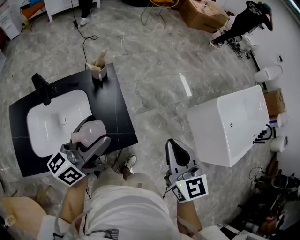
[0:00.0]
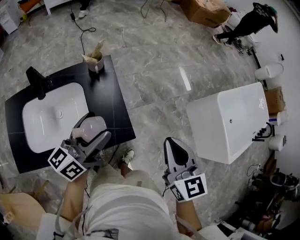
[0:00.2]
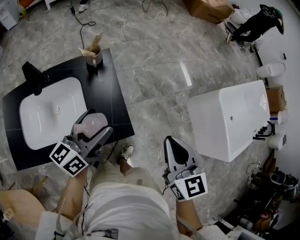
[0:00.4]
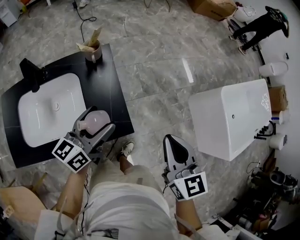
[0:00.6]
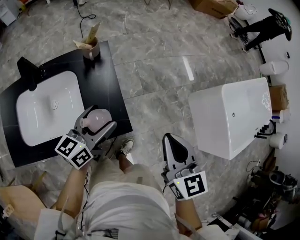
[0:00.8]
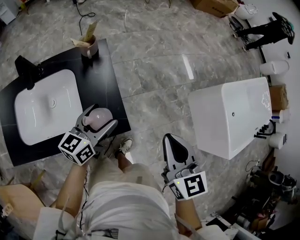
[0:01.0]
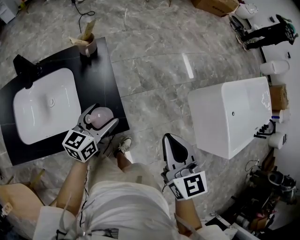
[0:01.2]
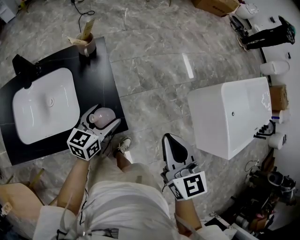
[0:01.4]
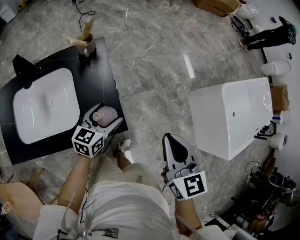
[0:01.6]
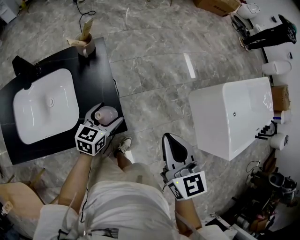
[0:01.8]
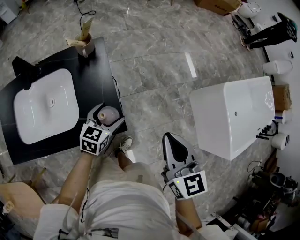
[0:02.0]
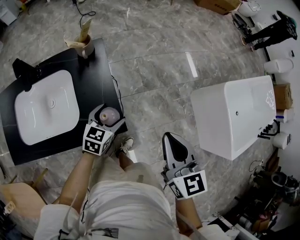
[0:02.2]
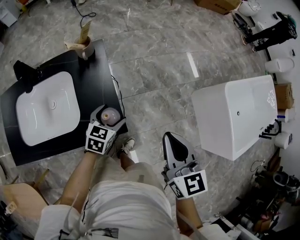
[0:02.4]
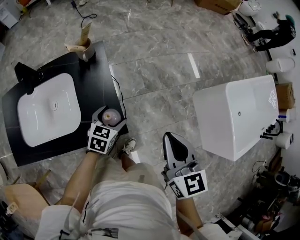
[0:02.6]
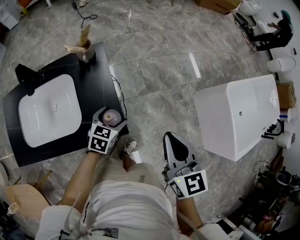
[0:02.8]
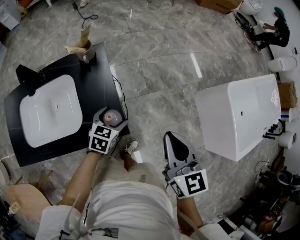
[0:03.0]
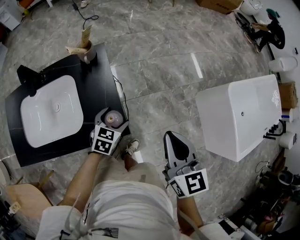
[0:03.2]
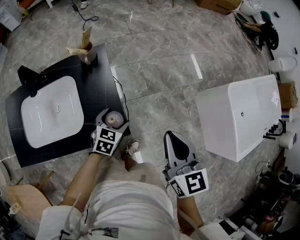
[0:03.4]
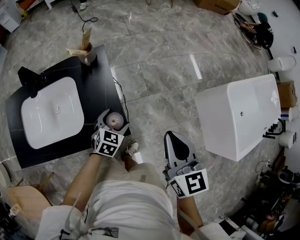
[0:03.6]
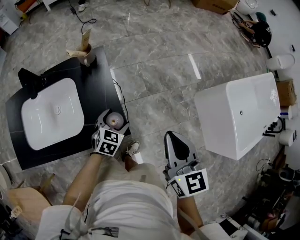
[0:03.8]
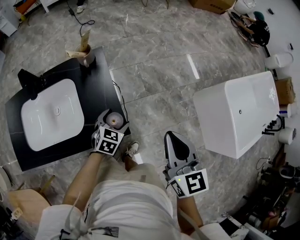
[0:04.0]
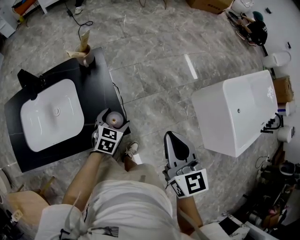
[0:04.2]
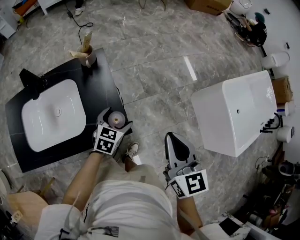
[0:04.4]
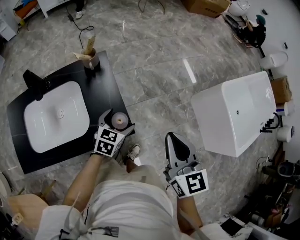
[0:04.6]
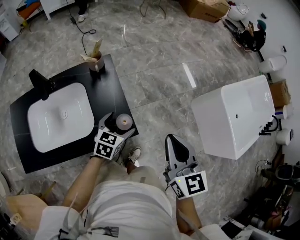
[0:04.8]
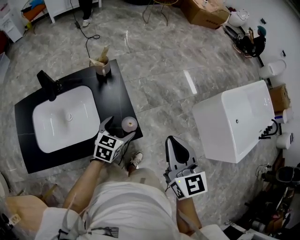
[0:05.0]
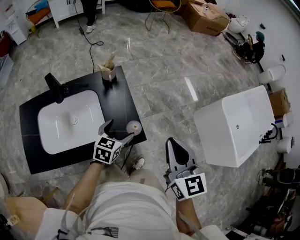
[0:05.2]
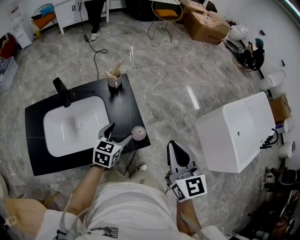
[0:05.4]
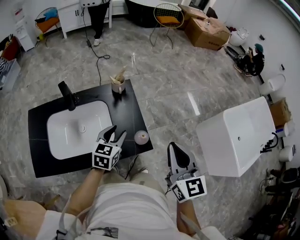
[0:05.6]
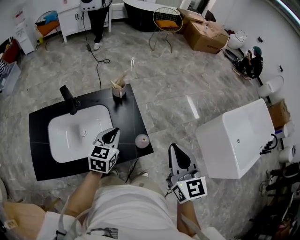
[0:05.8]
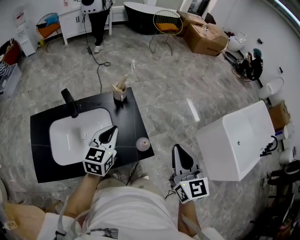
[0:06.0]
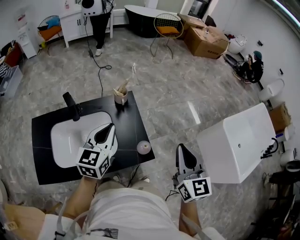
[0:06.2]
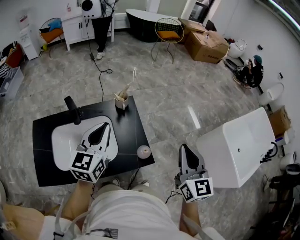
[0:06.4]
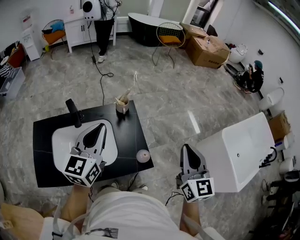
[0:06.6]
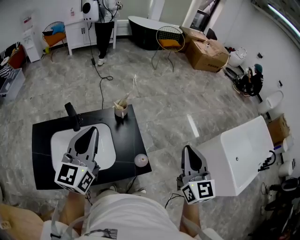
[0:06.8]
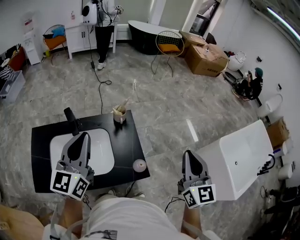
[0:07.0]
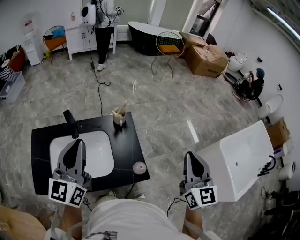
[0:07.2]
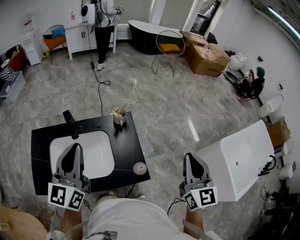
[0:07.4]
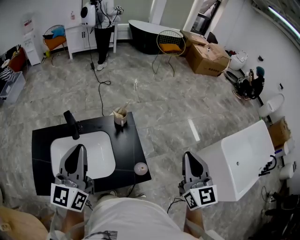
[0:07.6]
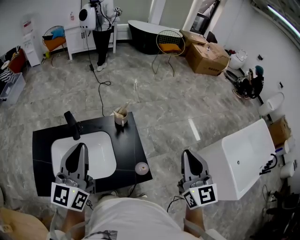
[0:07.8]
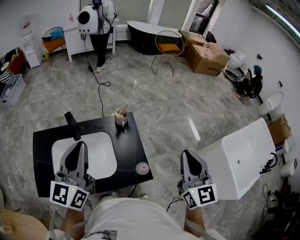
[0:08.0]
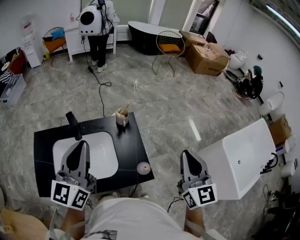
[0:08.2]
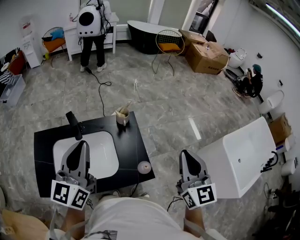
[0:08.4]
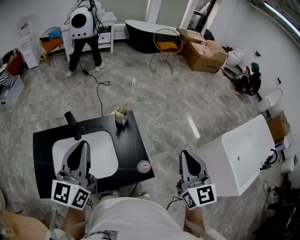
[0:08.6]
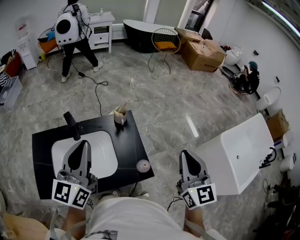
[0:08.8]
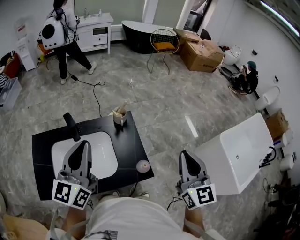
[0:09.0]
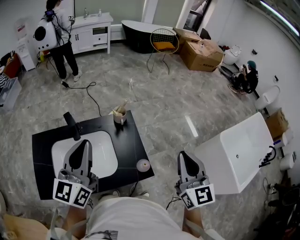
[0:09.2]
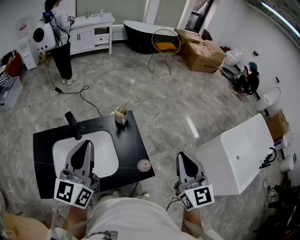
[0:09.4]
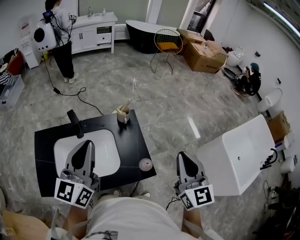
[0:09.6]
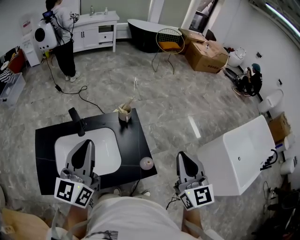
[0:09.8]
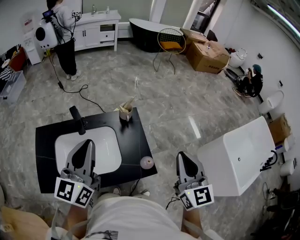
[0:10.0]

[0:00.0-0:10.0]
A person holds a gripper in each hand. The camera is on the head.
0.0 to 1.4 s: The left gripper travels downward by about 25 cm, and rotates about 30 degrees; the right gripper is displaced downward by about 5 cm.
1.4 to 2.8 s: The left gripper goes some 5 cm downward, and turns by about 30 degrees.
2.8 to 4.2 s: There are only small adjustments of the grippers.
4.2 to 5.8 s: The right gripper moves to the left and upward, approximately 15 cm. The left gripper moves upward and to the left, about 25 cm, turns by about 20 degrees, and closes up.
5.8 to 7.2 s: The right gripper goes some 10 cm upward, forward and to the right. Meanwhile the left gripper heads upward and to the left, covering roughly 25 cm, and tilts its fingers roughly 30 degrees upward.
7.2 to 8.6 s: The grippers stay close to where they were, moving slightly.
8.6 to 10.0 s: There are only small adjustments of the grippers.

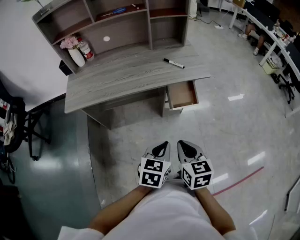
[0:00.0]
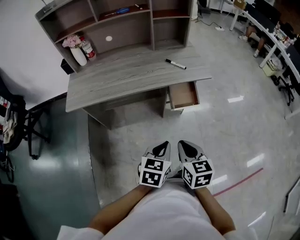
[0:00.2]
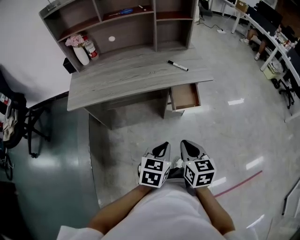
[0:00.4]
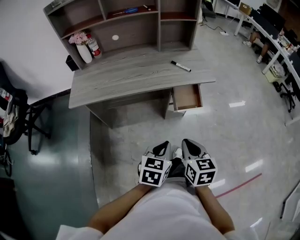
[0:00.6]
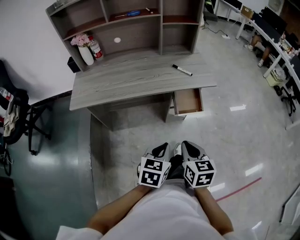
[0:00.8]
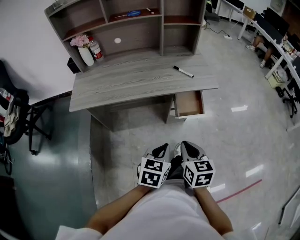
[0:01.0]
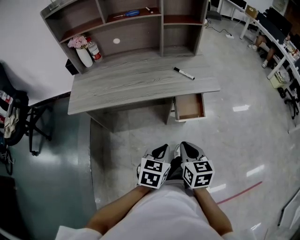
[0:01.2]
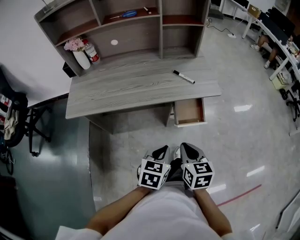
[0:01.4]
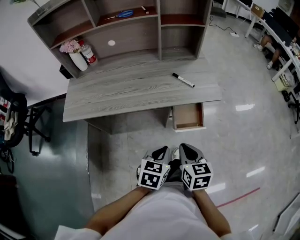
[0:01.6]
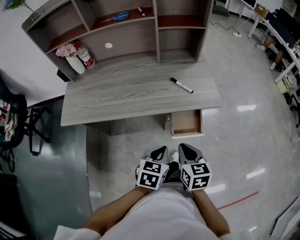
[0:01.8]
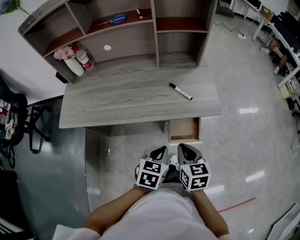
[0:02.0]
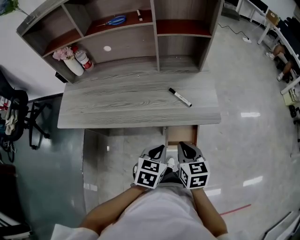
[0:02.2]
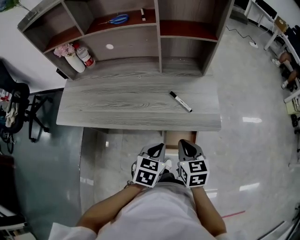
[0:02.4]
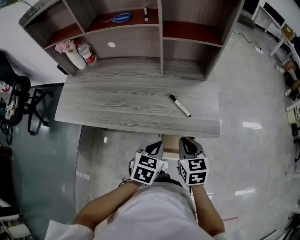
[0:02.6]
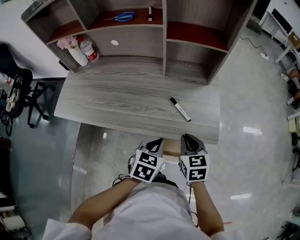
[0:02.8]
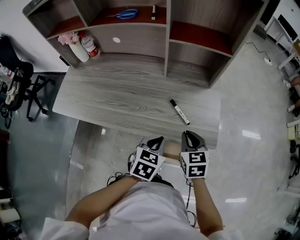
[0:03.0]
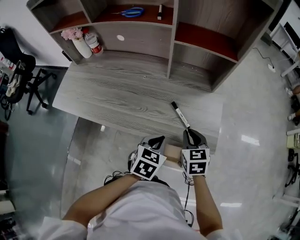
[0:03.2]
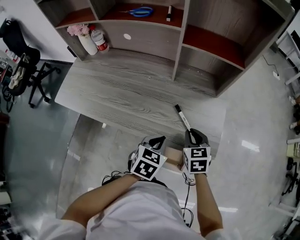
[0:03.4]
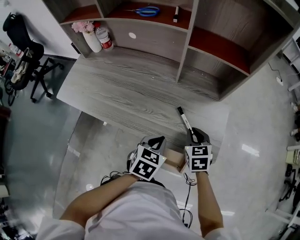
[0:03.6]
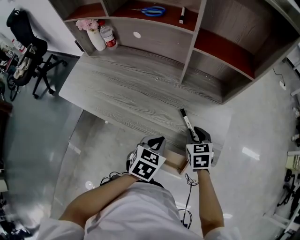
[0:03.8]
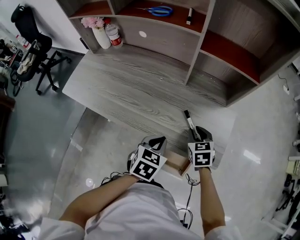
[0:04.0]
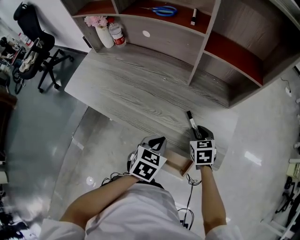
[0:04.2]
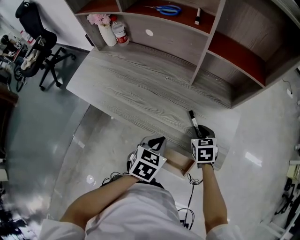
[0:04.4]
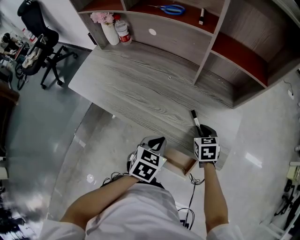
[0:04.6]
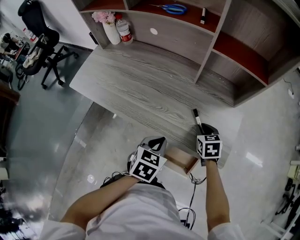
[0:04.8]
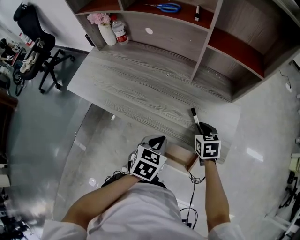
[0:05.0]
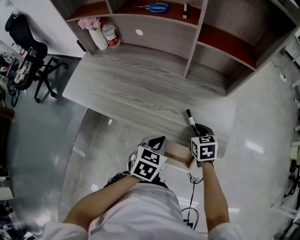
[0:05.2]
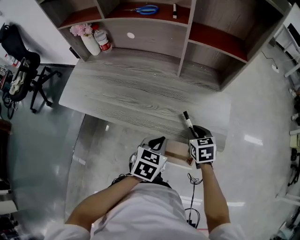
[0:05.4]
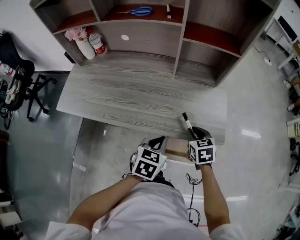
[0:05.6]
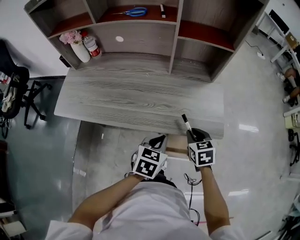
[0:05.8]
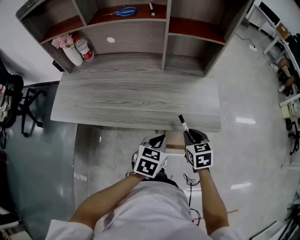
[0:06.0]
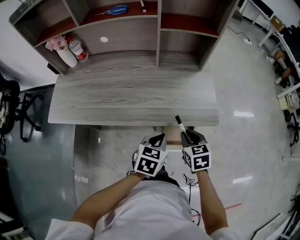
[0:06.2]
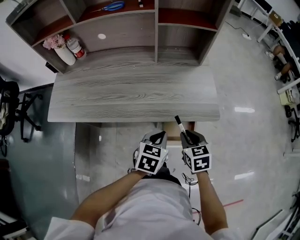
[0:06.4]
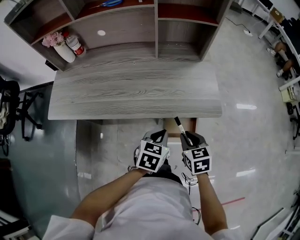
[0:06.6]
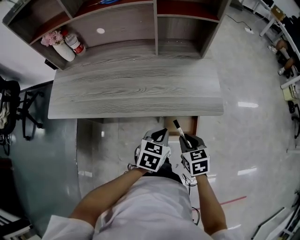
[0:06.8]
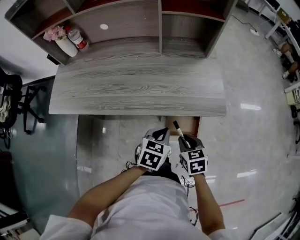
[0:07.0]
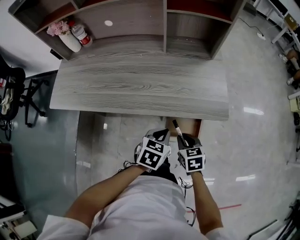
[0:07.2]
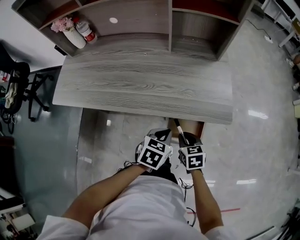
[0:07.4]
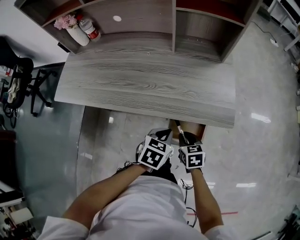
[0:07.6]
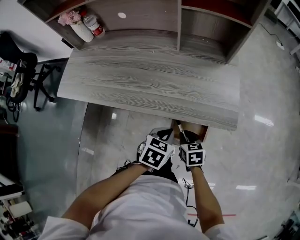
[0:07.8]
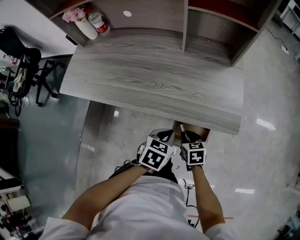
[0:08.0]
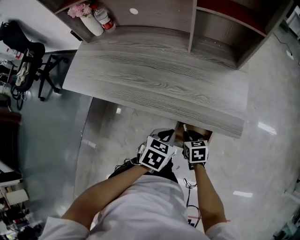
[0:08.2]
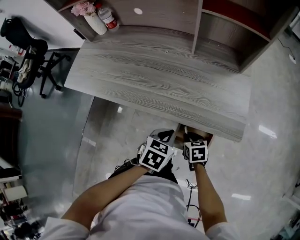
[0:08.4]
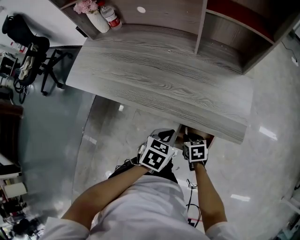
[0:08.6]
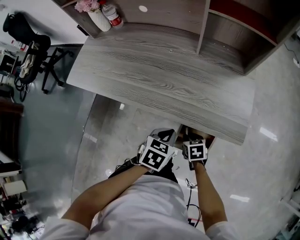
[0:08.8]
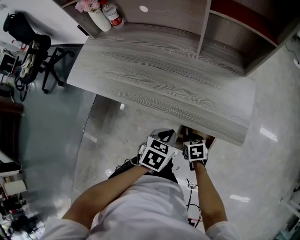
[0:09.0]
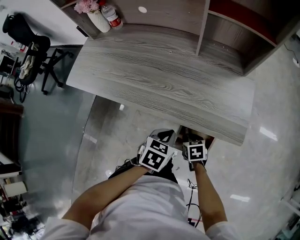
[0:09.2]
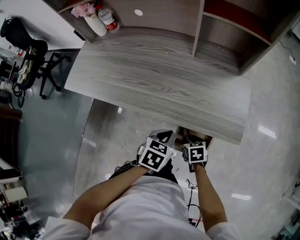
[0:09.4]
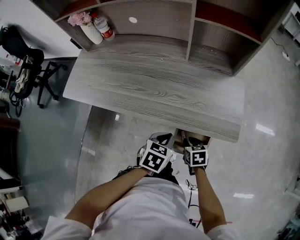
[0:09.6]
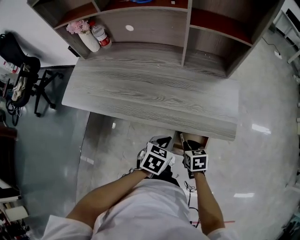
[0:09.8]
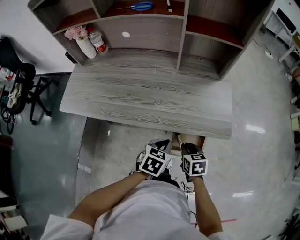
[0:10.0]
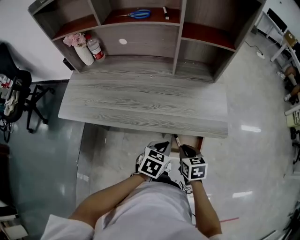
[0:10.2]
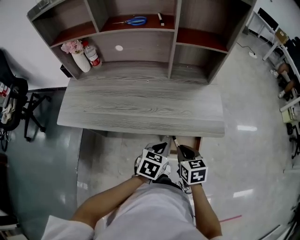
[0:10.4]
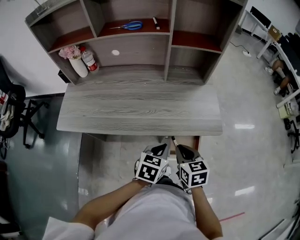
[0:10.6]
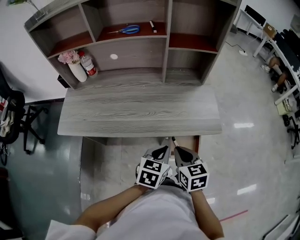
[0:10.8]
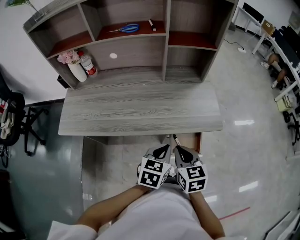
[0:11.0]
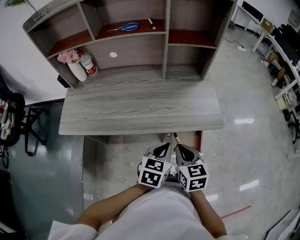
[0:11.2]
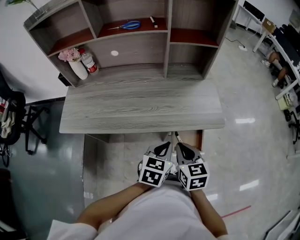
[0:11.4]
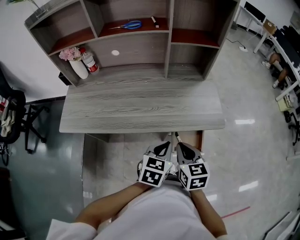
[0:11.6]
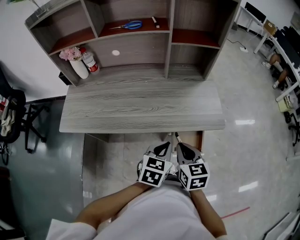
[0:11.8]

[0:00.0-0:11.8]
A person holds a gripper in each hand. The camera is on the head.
0.0 to 1.4 s: Both grippers move forward, about 10 cm.
1.4 to 3.0 s: Both grippers move forward, roughly 30 cm. The right gripper swivels roughly 20 degrees.
3.0 to 4.4 s: The right gripper travels forward and downward by some 10 cm. The left gripper shifts by some 5 cm.
4.4 to 6.0 s: The left gripper travels backward by some 5 cm. The right gripper is displaced backward by approximately 15 cm.
6.0 to 7.4 s: The right gripper is displaced downward and backward by roughly 10 cm. The left gripper goes about 5 cm downward.
7.4 to 8.8 s: The right gripper moves downward, some 10 cm.
8.8 to 10.4 s: The right gripper is displaced upward by roughly 20 cm, and turns by roughly 30 degrees. Meanwhile the left gripper heads upward, covering some 5 cm.
10.4 to 11.8 s: The two grippers go about 5 cm upward.

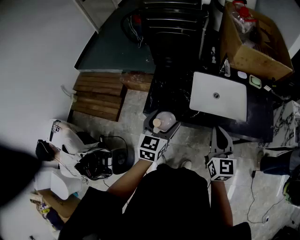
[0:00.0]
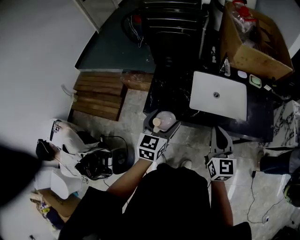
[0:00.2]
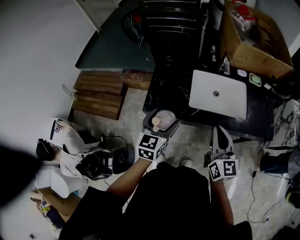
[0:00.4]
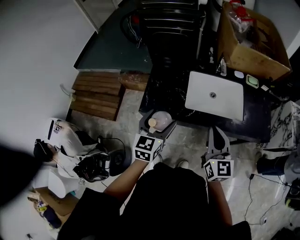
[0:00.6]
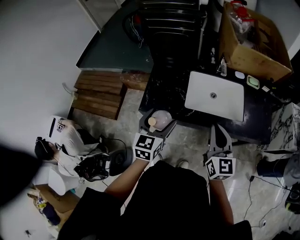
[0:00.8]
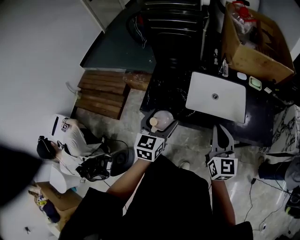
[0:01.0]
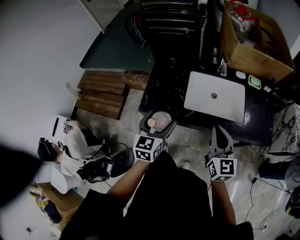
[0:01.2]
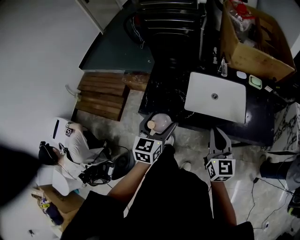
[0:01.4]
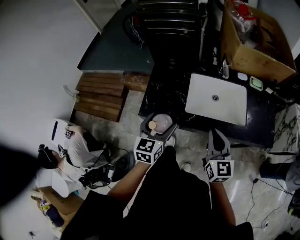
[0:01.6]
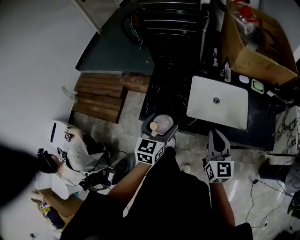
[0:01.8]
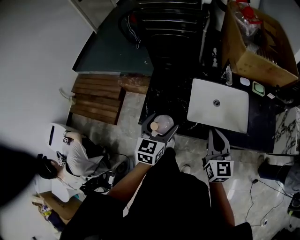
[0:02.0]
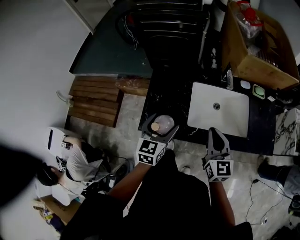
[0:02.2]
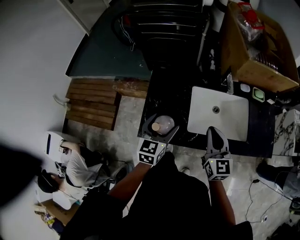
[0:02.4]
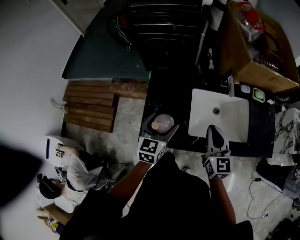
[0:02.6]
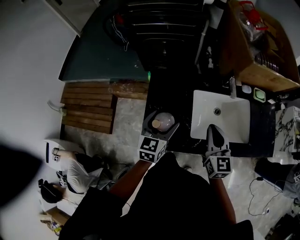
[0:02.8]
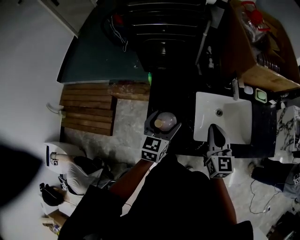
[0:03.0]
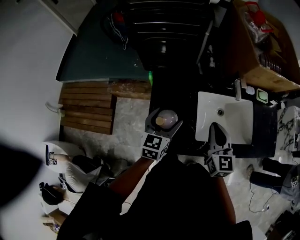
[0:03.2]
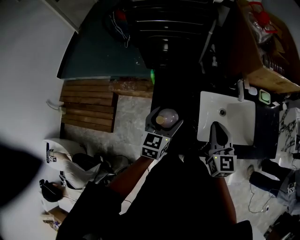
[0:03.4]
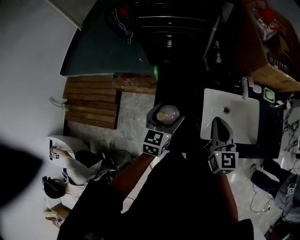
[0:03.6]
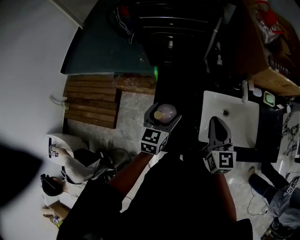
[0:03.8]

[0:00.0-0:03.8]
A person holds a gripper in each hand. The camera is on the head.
0.0 to 1.2 s: The right gripper travels to the right by roughly 5 cm.
1.2 to 2.6 s: The left gripper moves forward, roughly 20 cm. The right gripper is displaced forward and to the left by about 20 cm.
2.6 to 3.8 s: The grippers both shift forward and to the left by about 10 cm.
